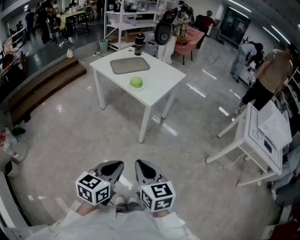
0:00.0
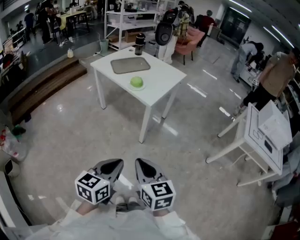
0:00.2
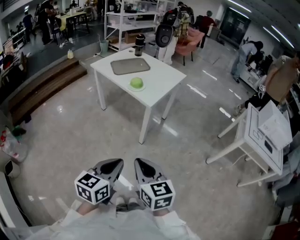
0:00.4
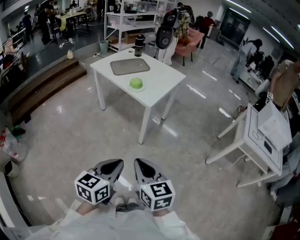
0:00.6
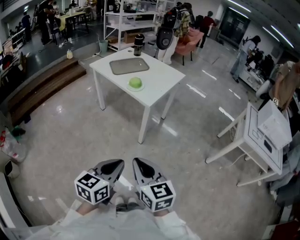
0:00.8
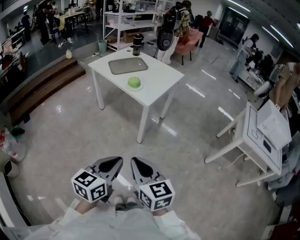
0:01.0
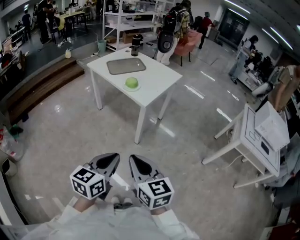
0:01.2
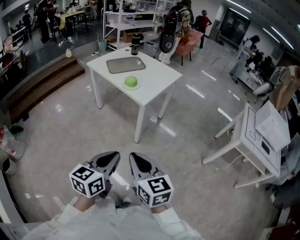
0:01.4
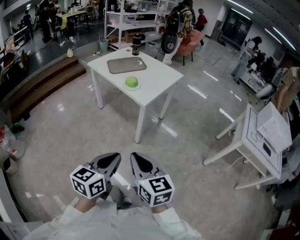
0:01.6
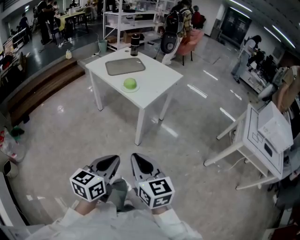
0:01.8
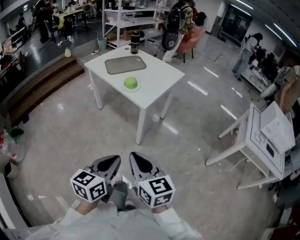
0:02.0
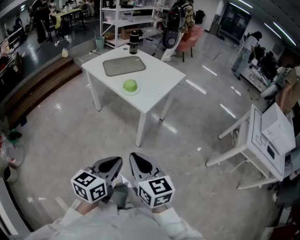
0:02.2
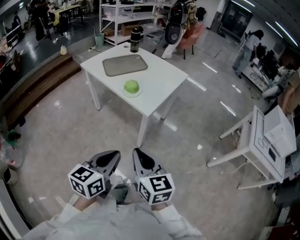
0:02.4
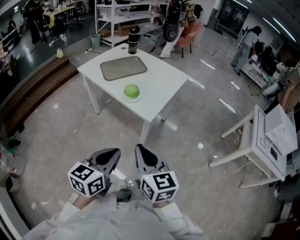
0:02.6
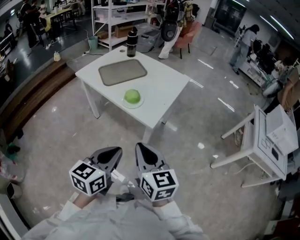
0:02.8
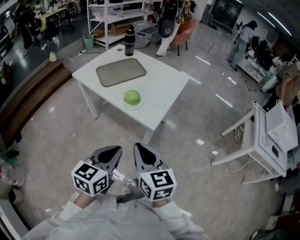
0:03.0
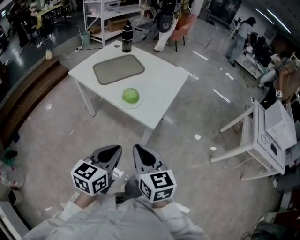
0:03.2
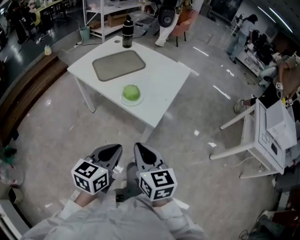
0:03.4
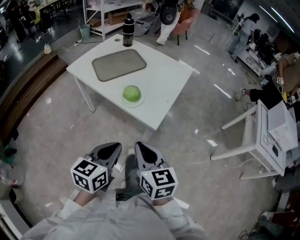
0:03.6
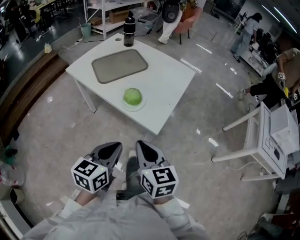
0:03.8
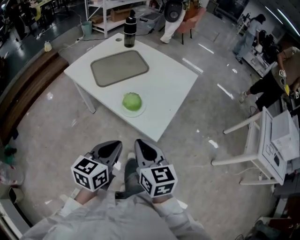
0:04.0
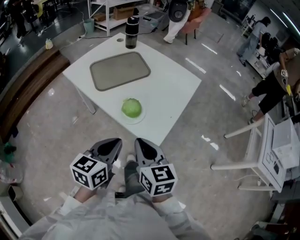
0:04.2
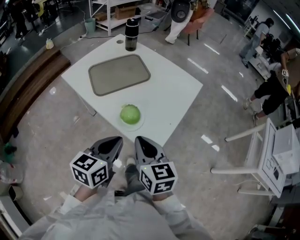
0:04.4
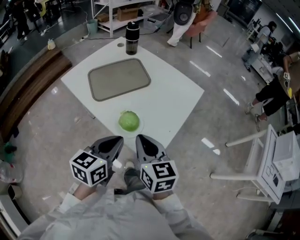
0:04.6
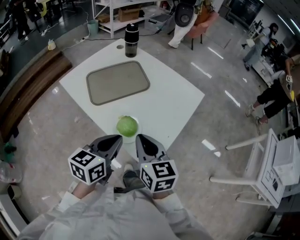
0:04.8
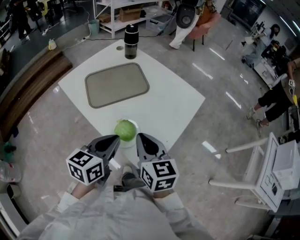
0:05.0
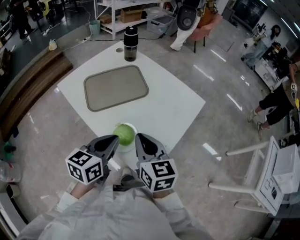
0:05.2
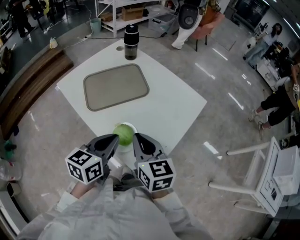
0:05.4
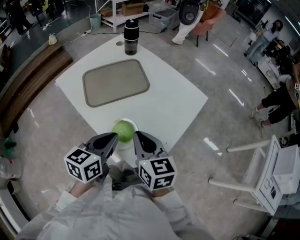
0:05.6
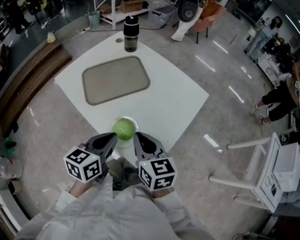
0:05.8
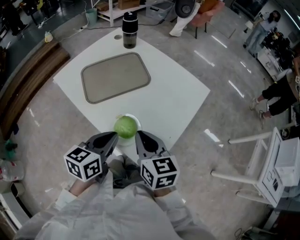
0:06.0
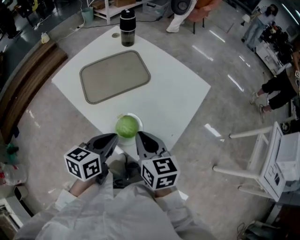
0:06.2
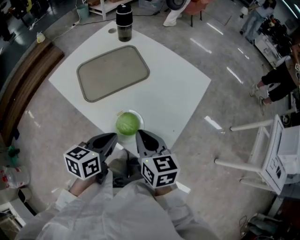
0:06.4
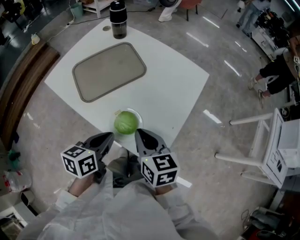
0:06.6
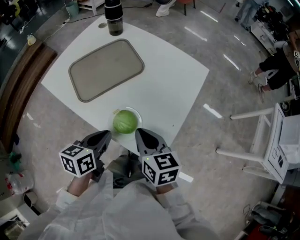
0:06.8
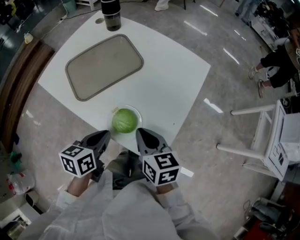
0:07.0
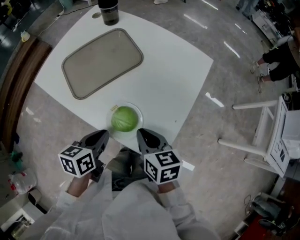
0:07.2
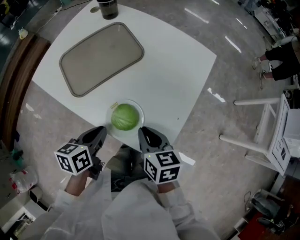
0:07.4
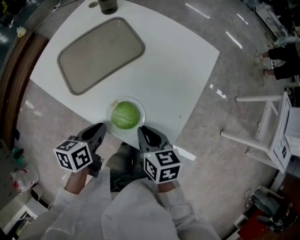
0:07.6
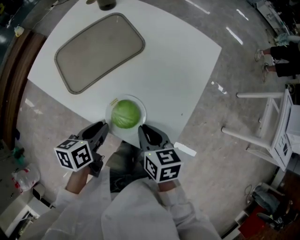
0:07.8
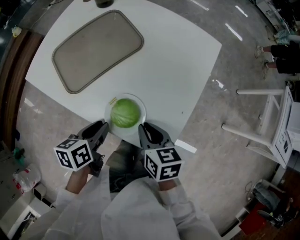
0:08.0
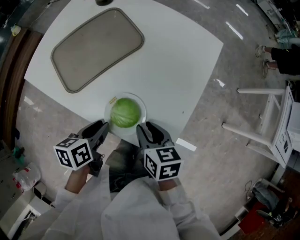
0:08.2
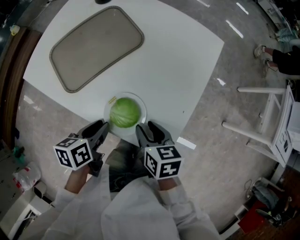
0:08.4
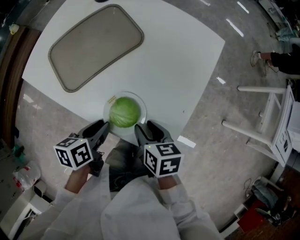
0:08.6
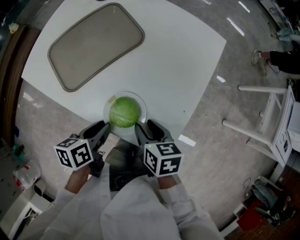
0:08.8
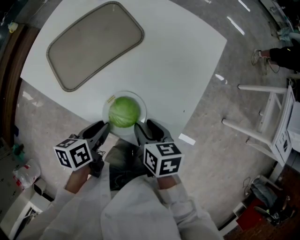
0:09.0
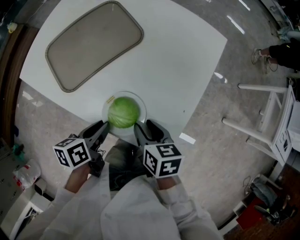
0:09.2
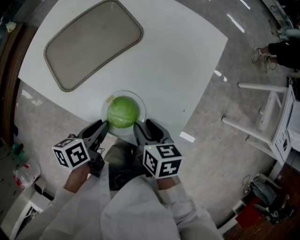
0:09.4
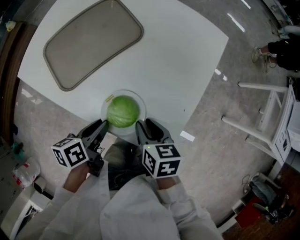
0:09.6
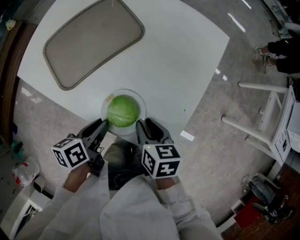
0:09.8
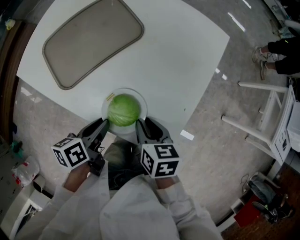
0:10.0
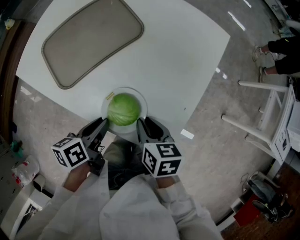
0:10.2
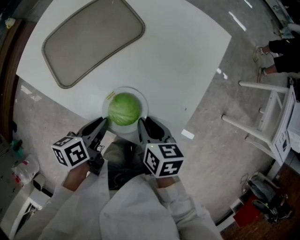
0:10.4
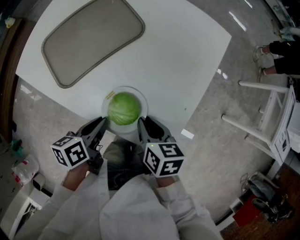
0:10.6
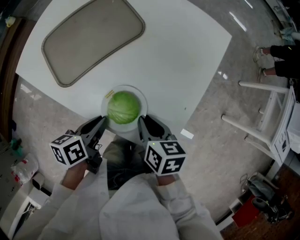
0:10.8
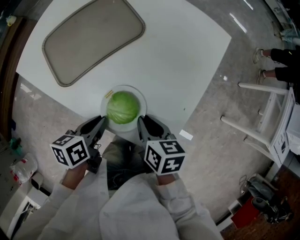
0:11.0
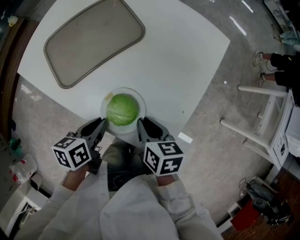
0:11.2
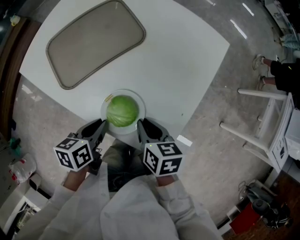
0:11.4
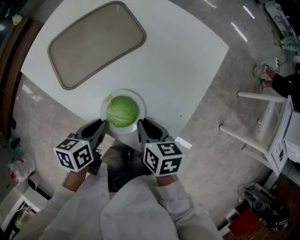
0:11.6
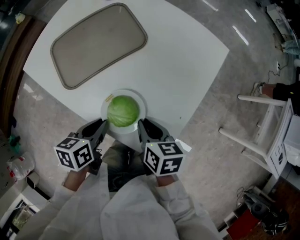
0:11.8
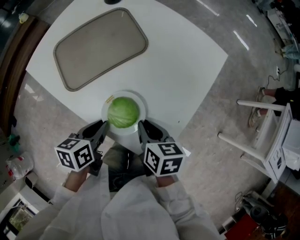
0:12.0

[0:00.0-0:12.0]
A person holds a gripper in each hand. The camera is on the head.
0:00.0 to 0:01.6: The left gripper shifts by roughly 5 cm.
0:01.6 to 0:03.0: The grippers both shift forward by about 25 cm.
0:03.0 to 0:04.4: Both grippers travel together forward, roughly 25 cm.
0:04.4 to 0:06.0: The two grippers go some 10 cm forward.
0:06.0 to 0:07.6: The left gripper shifts roughly 10 cm downward and to the left, and turns by roughly 20 degrees. The right gripper goes approximately 10 cm downward, and swivels roughly 20 degrees.
0:07.6 to 0:09.0: The left gripper opens, while the right gripper opens its fingers.
0:09.0 to 0:12.0: The grippers make only small movements.

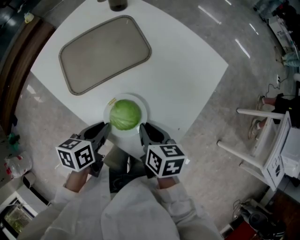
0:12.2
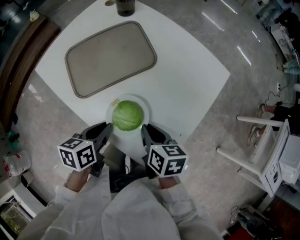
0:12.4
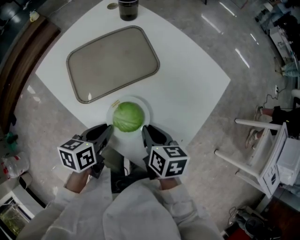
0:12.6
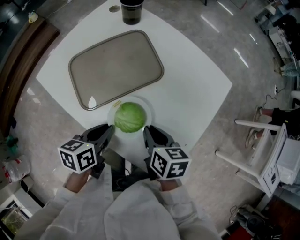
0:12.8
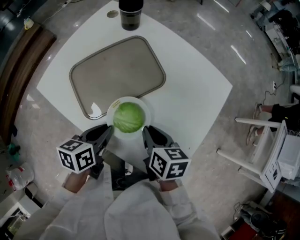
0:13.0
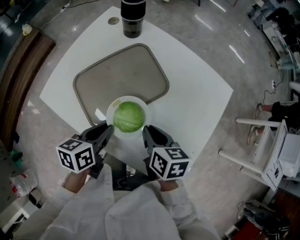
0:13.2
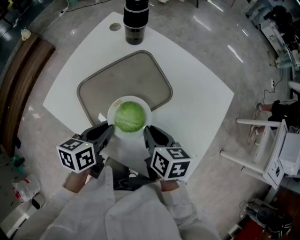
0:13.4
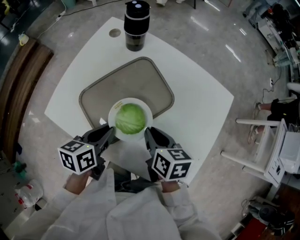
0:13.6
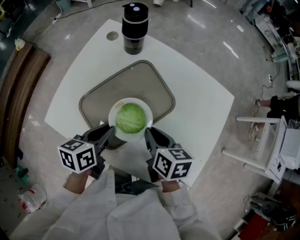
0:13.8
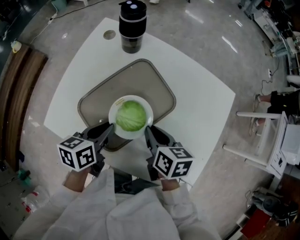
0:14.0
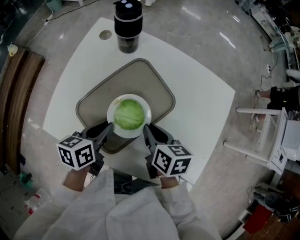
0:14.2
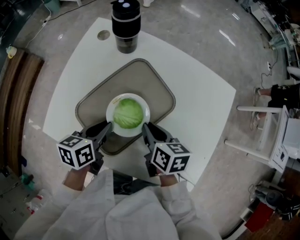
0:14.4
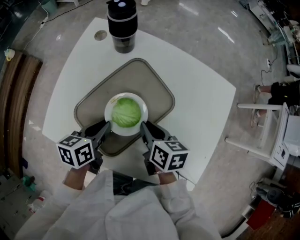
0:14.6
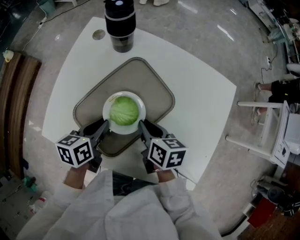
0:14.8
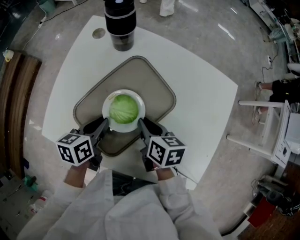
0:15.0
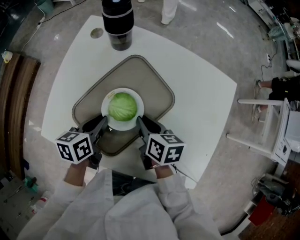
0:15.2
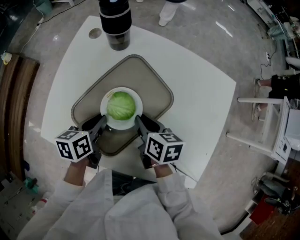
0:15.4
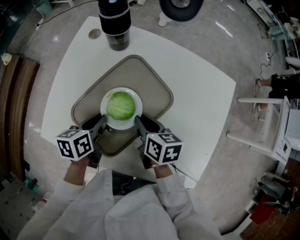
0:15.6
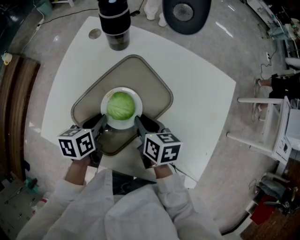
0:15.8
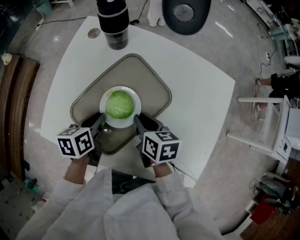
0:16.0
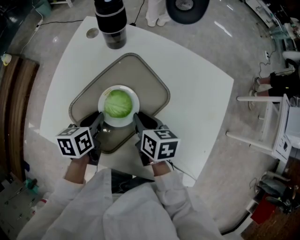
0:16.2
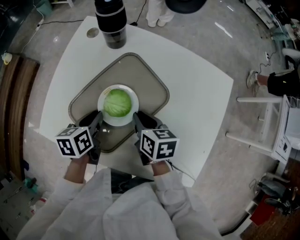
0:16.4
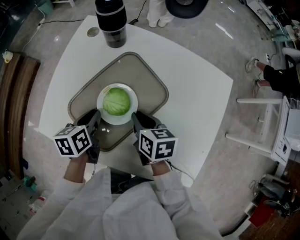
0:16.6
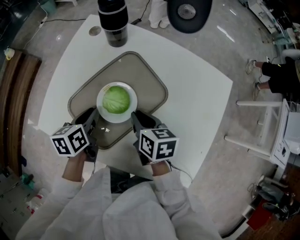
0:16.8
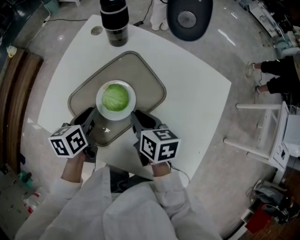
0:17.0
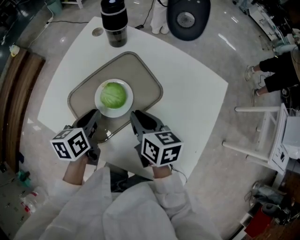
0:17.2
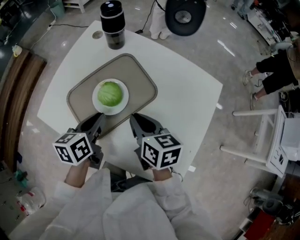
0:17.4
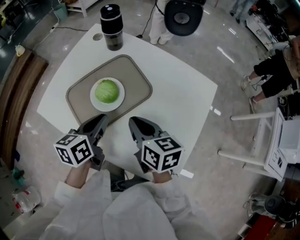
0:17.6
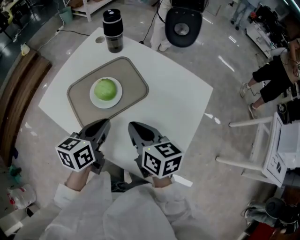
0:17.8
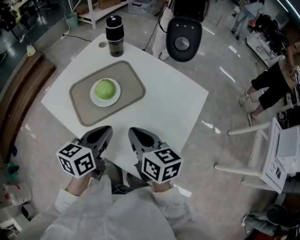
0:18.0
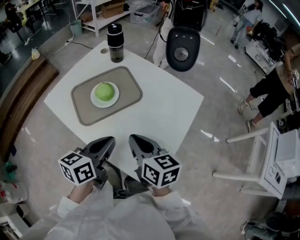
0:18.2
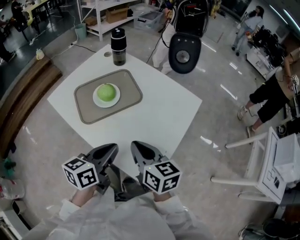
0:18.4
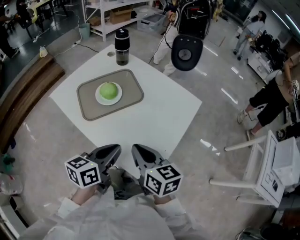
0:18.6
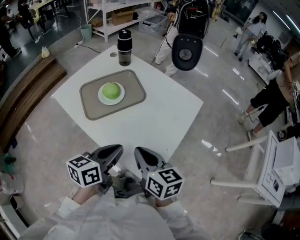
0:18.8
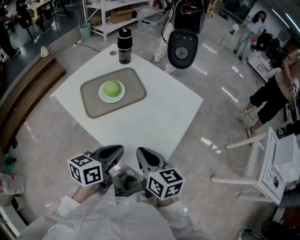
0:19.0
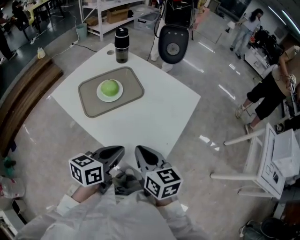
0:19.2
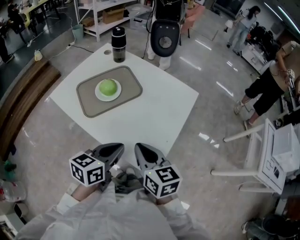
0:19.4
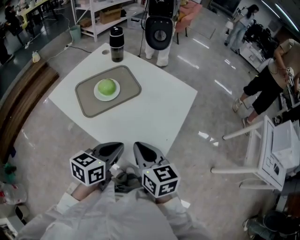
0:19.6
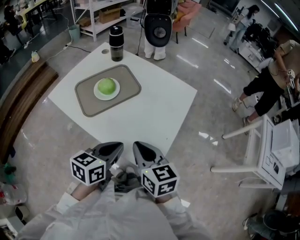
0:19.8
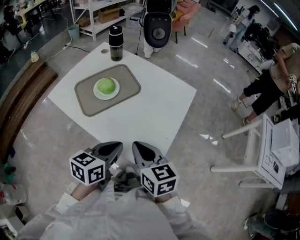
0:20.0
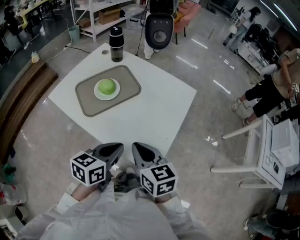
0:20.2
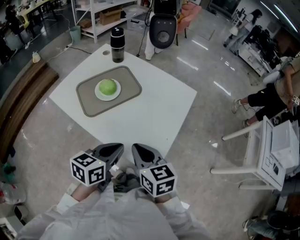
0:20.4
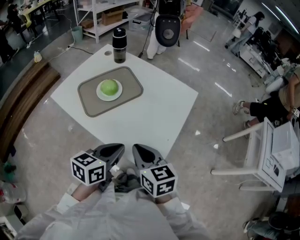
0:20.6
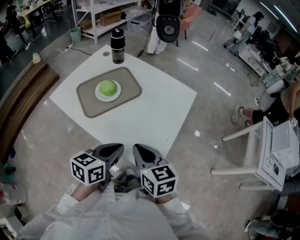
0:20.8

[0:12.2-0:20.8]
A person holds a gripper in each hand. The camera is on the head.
0:12.2 to 0:13.6: The two grippers go some 20 cm forward and to the left.
0:13.6 to 0:15.0: The right gripper shifts some 10 cm downward and forward; the left gripper heads forward and downward, covering some 10 cm.
0:15.0 to 0:16.6: The grippers move only a little.
0:16.6 to 0:18.0: The right gripper shifts roughly 20 cm backward, upward and to the right, and rotates about 30 degrees. Meanwhile the left gripper is displaced backward, to the right and upward by roughly 30 cm, and rotates some 20 degrees.
0:18.0 to 0:19.4: The right gripper travels backward by approximately 15 cm. Meanwhile the left gripper moves backward and to the right, roughly 15 cm.
0:19.4 to 0:20.8: The grippers move only a little.

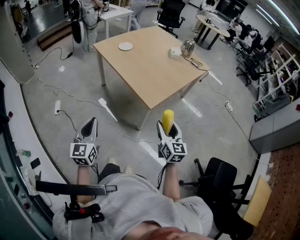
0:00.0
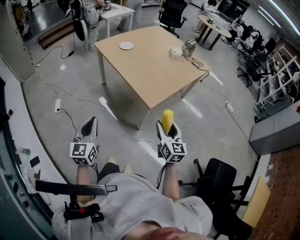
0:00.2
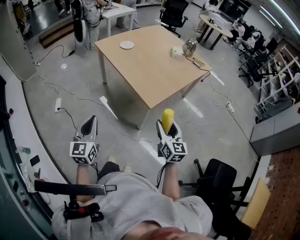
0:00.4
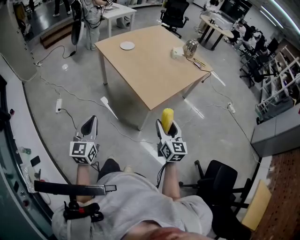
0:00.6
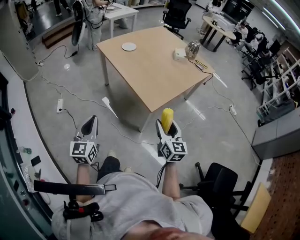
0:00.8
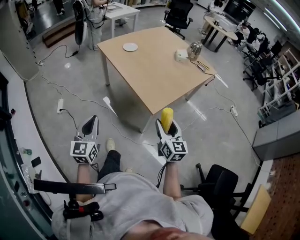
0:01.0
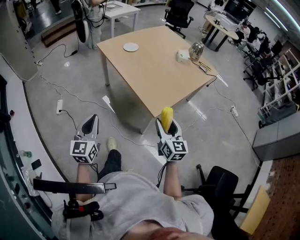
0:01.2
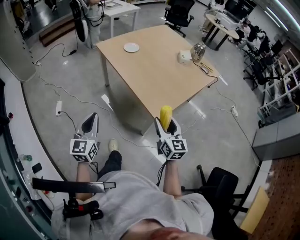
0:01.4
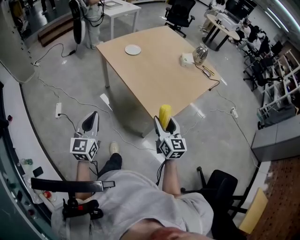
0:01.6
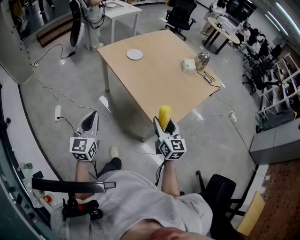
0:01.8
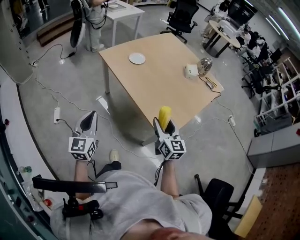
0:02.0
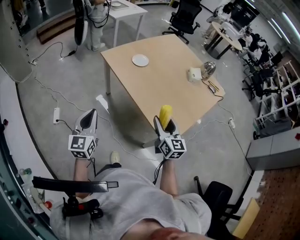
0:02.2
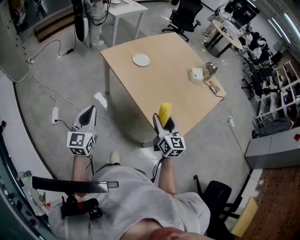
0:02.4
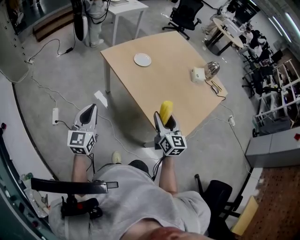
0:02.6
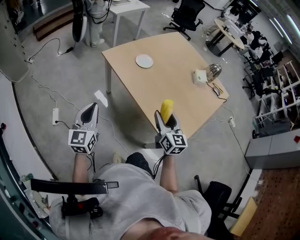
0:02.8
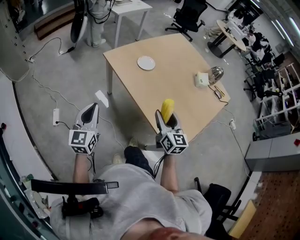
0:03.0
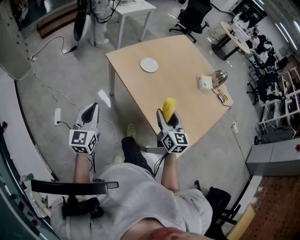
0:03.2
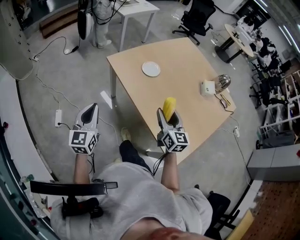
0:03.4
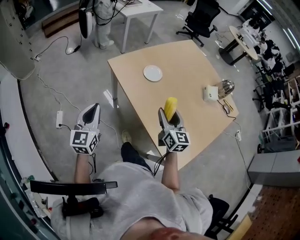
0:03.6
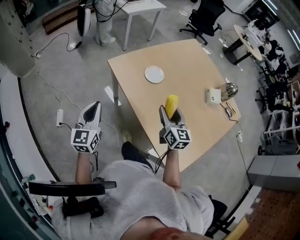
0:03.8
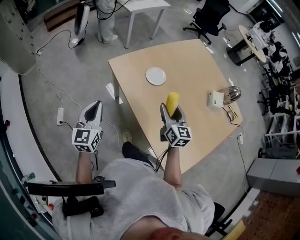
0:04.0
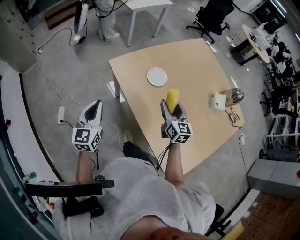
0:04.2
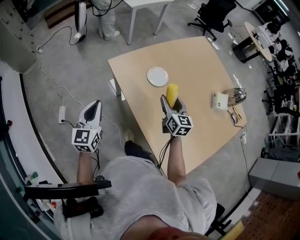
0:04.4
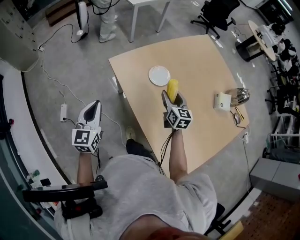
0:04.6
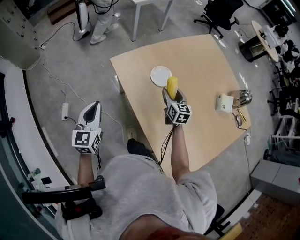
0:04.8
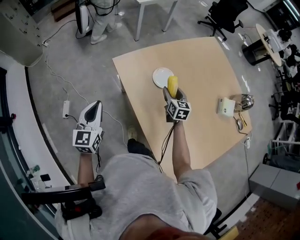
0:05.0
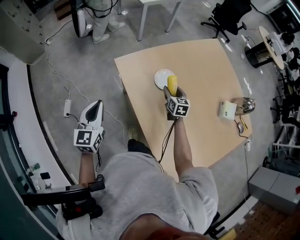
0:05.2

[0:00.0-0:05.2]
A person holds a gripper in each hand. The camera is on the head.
0:00.0 to 0:01.8: The left gripper moves forward, approximately 20 cm, while the right gripper heads forward and to the left, covering some 25 cm.
0:01.8 to 0:03.4: The right gripper travels forward by some 30 cm. The left gripper goes some 25 cm forward and to the left.
0:03.4 to 0:05.2: The right gripper goes approximately 40 cm forward and downward, and turns by roughly 30 degrees, while the left gripper heads forward, covering some 20 cm.
